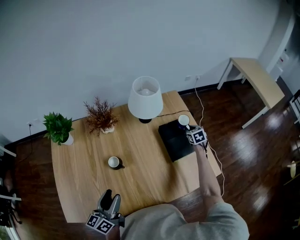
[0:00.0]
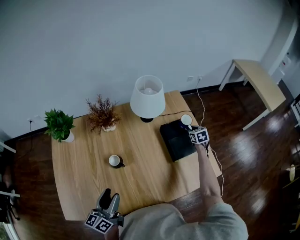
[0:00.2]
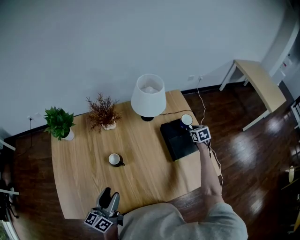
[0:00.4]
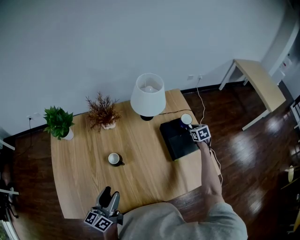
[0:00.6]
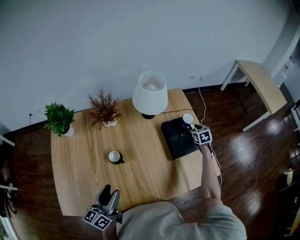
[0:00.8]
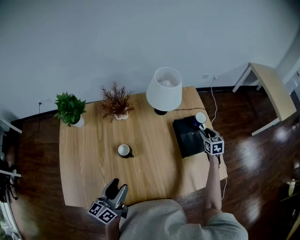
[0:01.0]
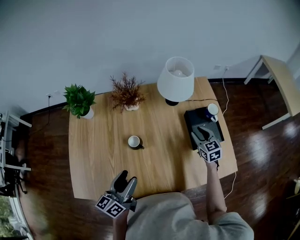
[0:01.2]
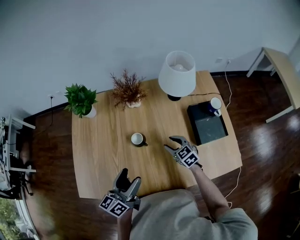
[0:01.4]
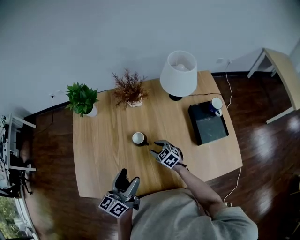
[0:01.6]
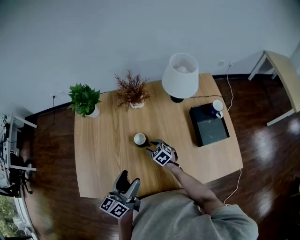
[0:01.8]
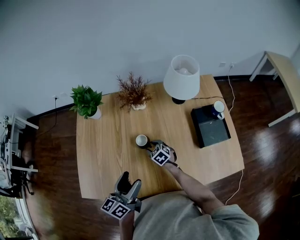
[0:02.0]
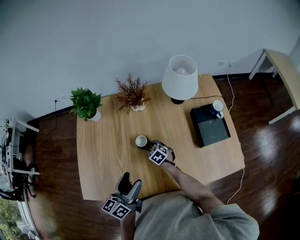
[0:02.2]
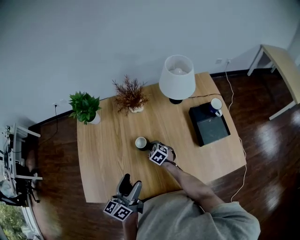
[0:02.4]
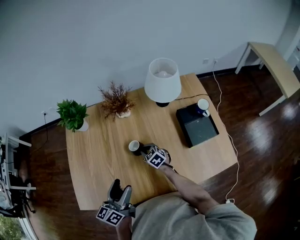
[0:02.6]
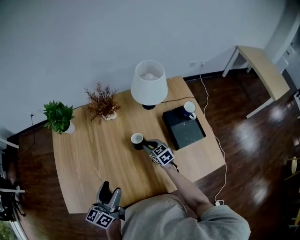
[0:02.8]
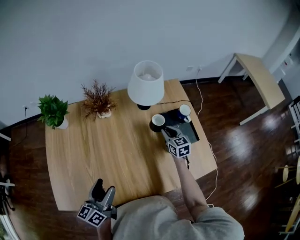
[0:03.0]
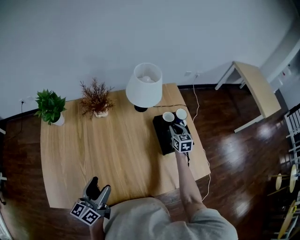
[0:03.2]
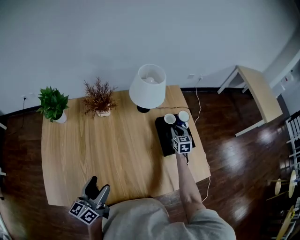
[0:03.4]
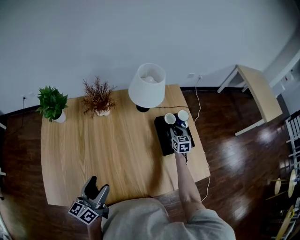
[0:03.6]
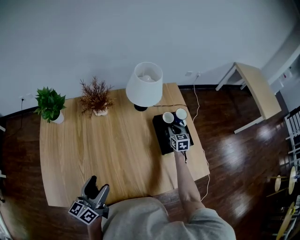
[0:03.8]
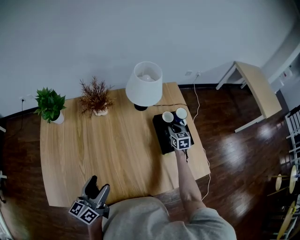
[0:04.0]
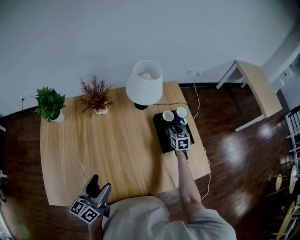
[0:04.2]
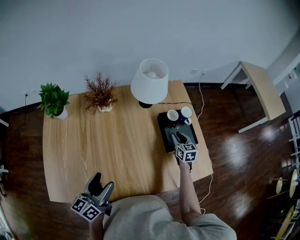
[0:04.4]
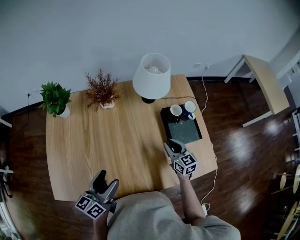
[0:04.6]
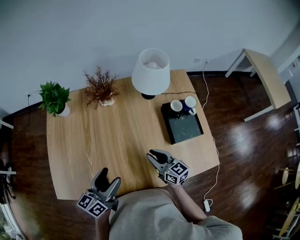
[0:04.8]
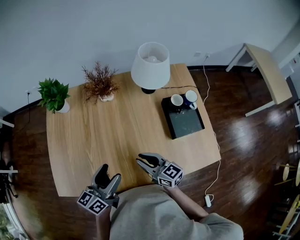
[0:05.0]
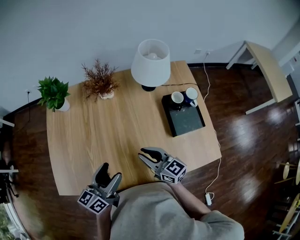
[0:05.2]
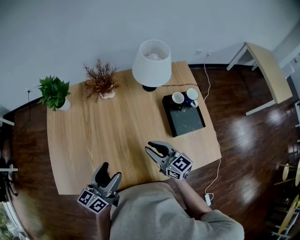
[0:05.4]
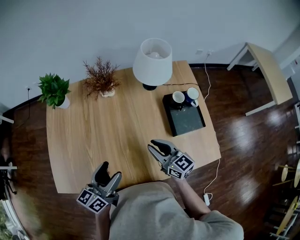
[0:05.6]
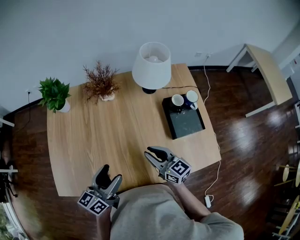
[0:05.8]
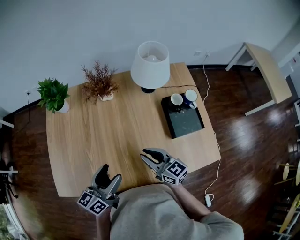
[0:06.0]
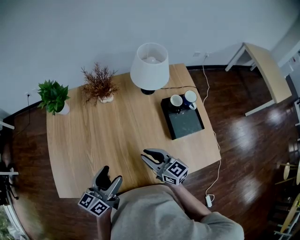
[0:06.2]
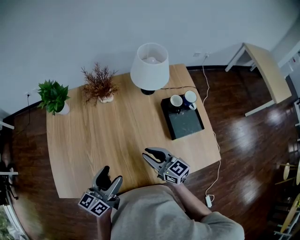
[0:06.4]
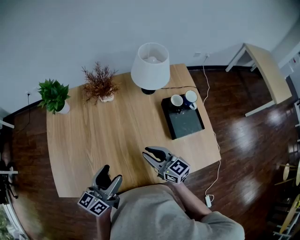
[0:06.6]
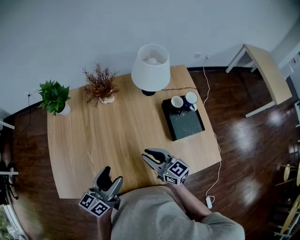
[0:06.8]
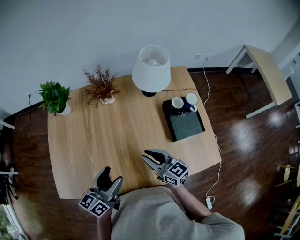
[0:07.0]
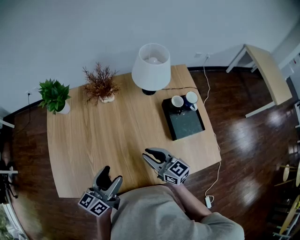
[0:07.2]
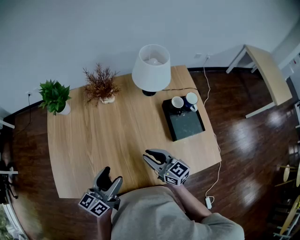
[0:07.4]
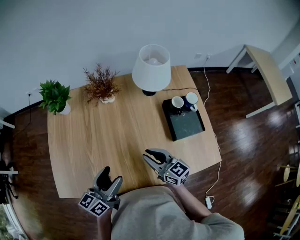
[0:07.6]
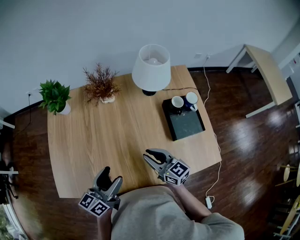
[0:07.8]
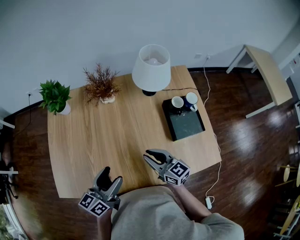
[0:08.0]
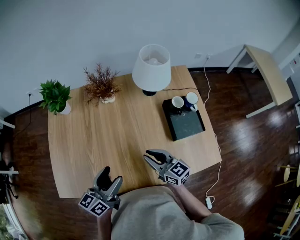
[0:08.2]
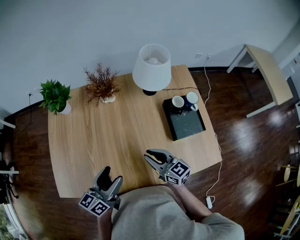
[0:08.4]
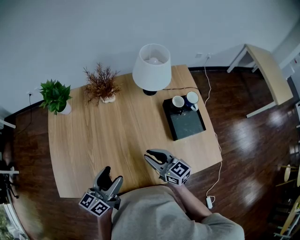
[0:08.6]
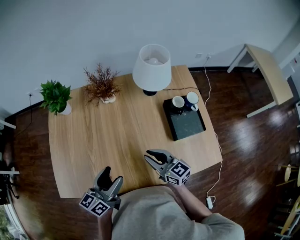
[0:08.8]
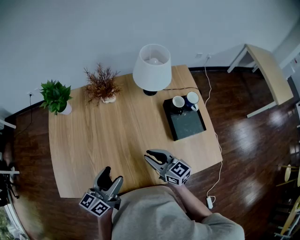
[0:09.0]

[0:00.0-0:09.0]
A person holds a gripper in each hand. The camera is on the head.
0:00.0 to 0:01.6: The right gripper moves approximately 50 cm, changes its angle by roughly 50 degrees, and opens.
0:01.6 to 0:03.0: The right gripper goes some 25 cm to the right, swivels roughly 40 degrees, and closes up.
0:03.0 to 0:04.4: The right gripper is displaced to the right by about 10 cm.
0:04.4 to 0:06.0: The right gripper heads to the left, backward and upward, covering about 30 cm, and rotates some 40 degrees.
0:06.0 to 0:07.6: The grippers move only a little.
0:07.6 to 0:09.0: Both grippers stay put.

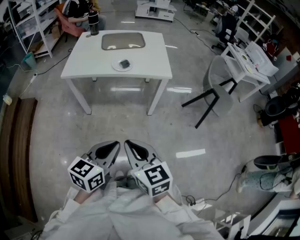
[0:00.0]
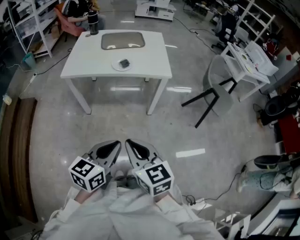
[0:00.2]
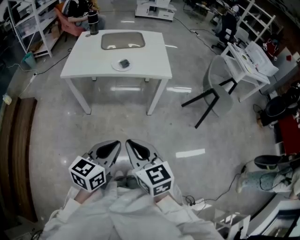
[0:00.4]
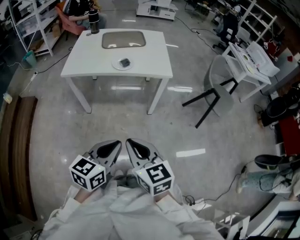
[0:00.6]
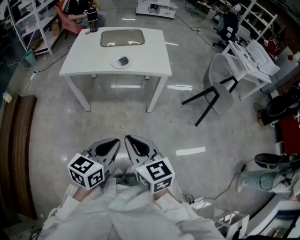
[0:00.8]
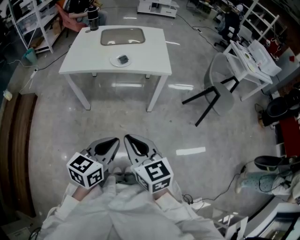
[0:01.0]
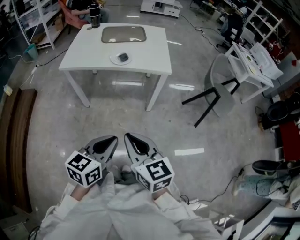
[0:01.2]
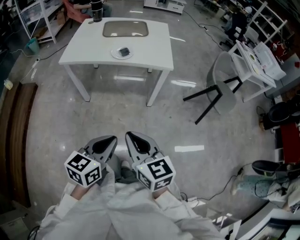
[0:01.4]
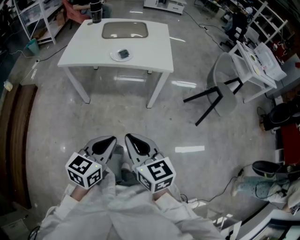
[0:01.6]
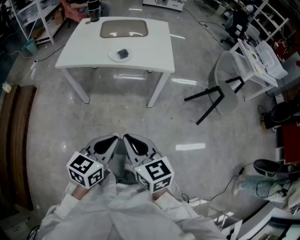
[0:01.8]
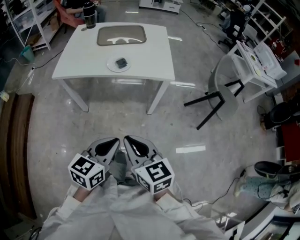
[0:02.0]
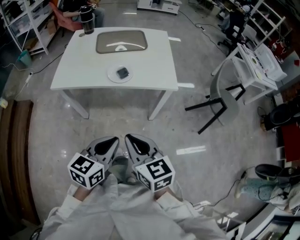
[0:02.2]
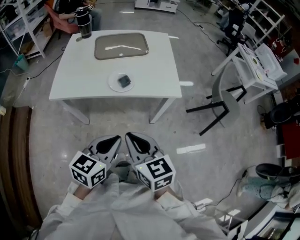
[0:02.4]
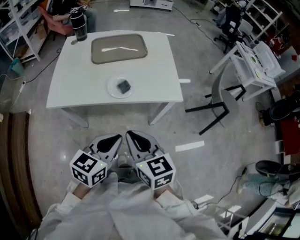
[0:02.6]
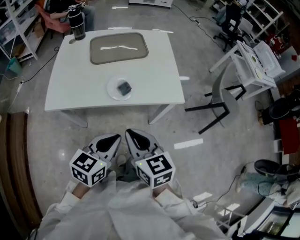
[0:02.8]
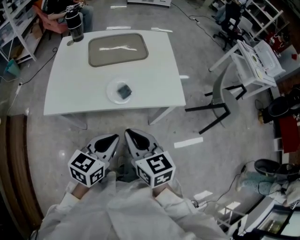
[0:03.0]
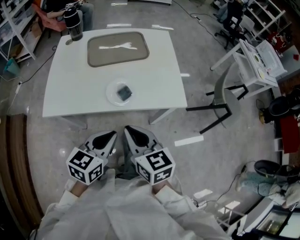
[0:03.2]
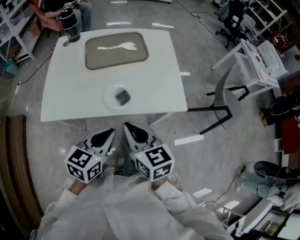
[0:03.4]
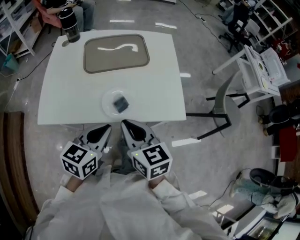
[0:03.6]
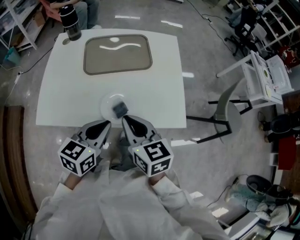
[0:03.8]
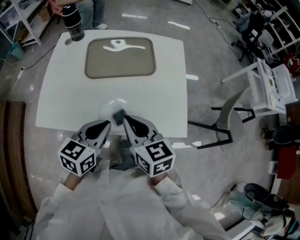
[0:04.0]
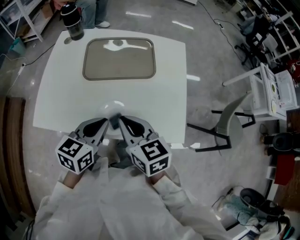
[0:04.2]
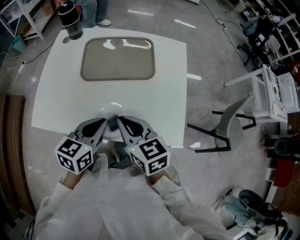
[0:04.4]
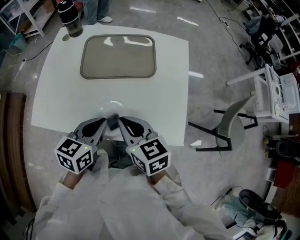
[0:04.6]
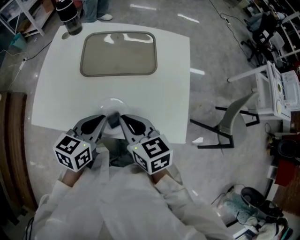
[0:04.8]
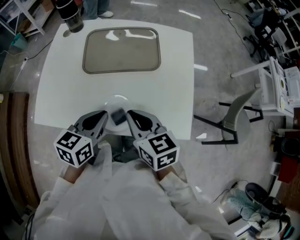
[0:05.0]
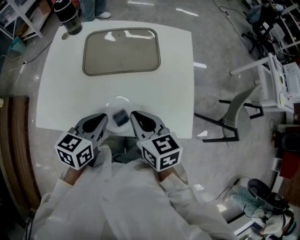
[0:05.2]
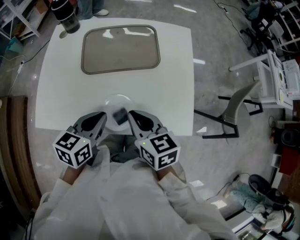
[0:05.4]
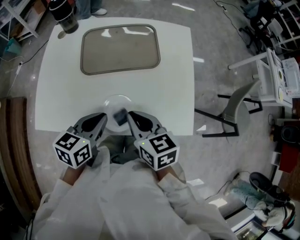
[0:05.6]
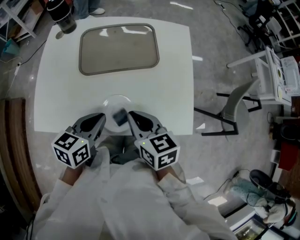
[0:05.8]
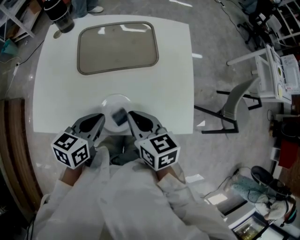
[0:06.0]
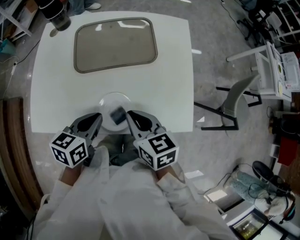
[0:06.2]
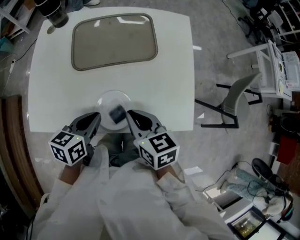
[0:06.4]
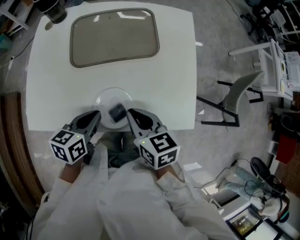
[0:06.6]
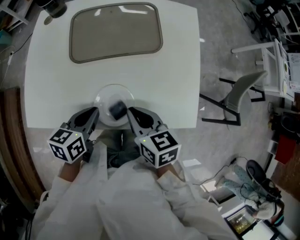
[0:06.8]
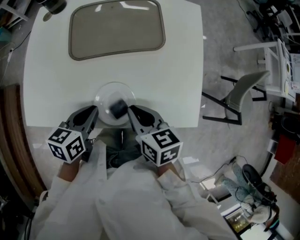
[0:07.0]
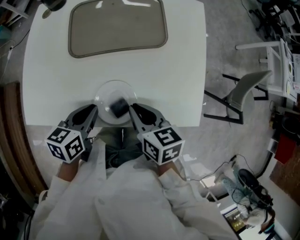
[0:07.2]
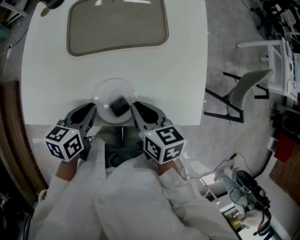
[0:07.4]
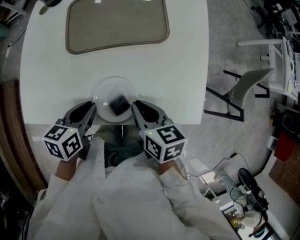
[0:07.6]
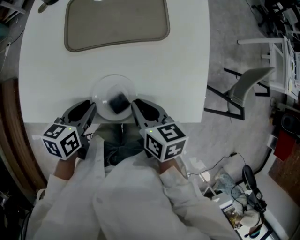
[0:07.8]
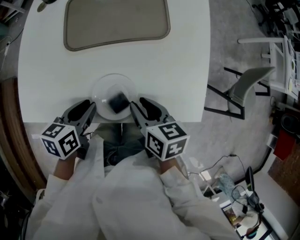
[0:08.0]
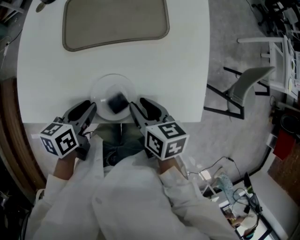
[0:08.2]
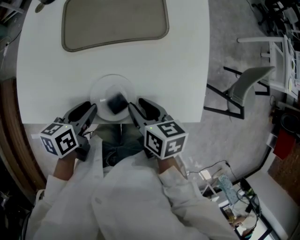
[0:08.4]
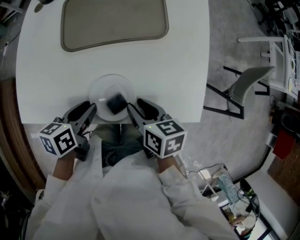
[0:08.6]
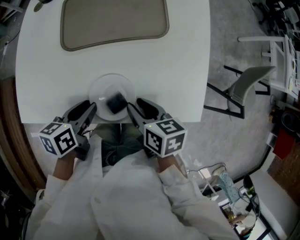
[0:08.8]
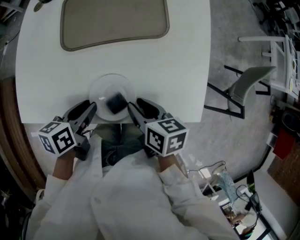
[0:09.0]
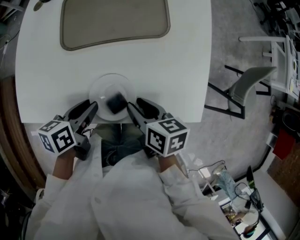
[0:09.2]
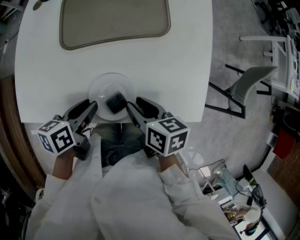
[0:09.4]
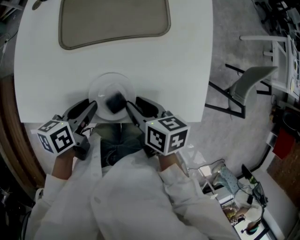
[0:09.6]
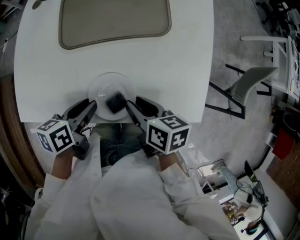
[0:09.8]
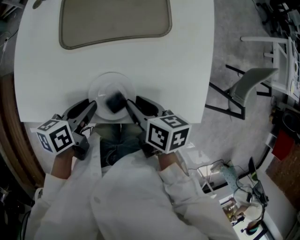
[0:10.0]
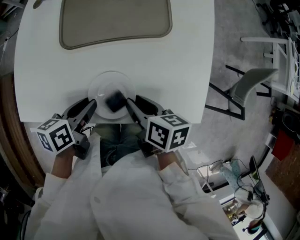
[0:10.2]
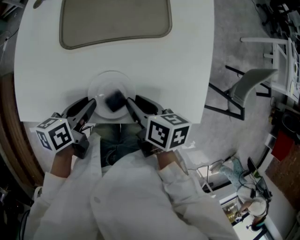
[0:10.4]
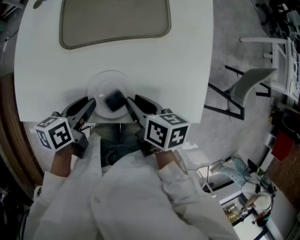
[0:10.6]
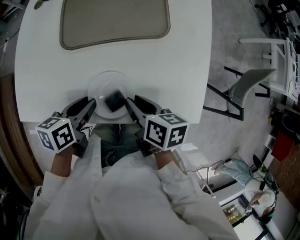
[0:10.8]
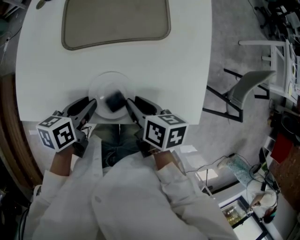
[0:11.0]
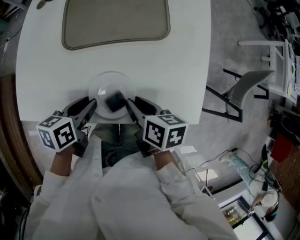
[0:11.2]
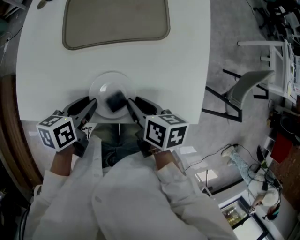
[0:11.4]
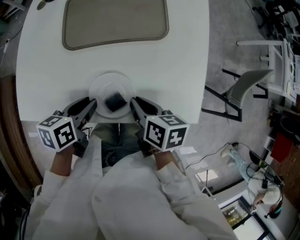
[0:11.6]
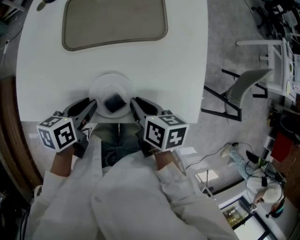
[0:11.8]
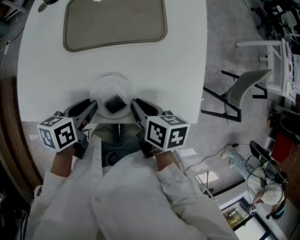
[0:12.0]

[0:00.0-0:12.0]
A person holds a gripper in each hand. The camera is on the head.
0:00.0 to 0:01.6: The right gripper goes roughly 5 cm to the right; the left gripper changes place by roughly 5 cm.
0:01.6 to 0:03.0: Both grippers travel together forward, approximately 35 cm.
0:03.0 to 0:04.4: The grippers both shift forward by some 25 cm.
0:04.4 to 0:06.0: The grippers stay close to where they were, moving slightly.
0:06.0 to 0:07.6: Both grippers travel together downward, about 10 cm.
0:07.6 to 0:09.0: The right gripper opens up.
0:09.0 to 0:12.0: There are only small adjustments of the grippers.

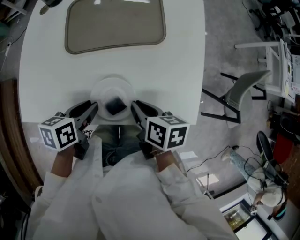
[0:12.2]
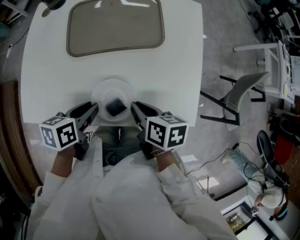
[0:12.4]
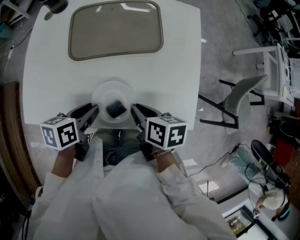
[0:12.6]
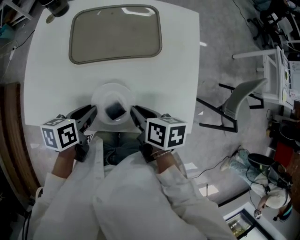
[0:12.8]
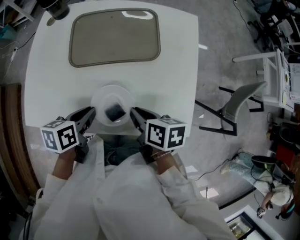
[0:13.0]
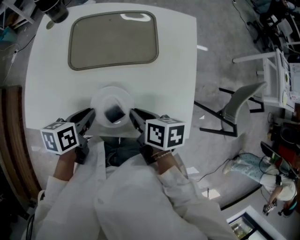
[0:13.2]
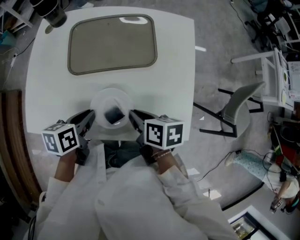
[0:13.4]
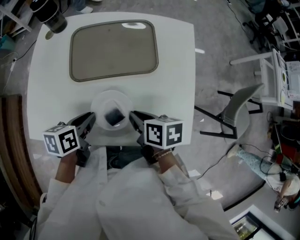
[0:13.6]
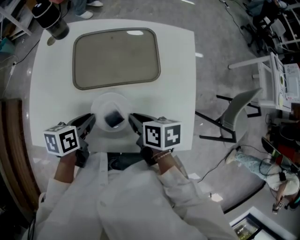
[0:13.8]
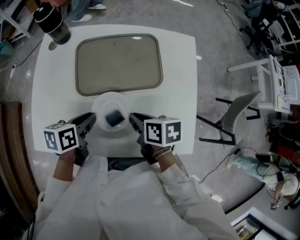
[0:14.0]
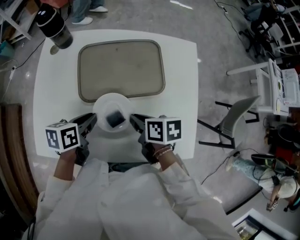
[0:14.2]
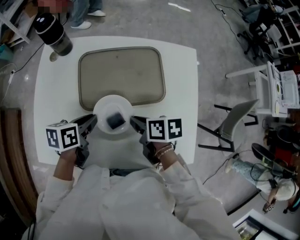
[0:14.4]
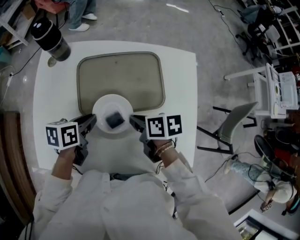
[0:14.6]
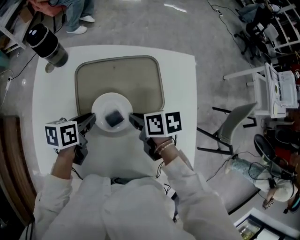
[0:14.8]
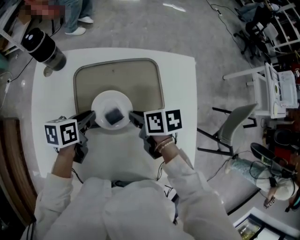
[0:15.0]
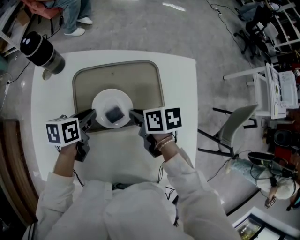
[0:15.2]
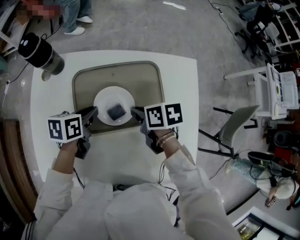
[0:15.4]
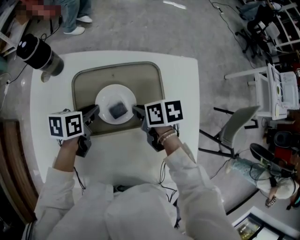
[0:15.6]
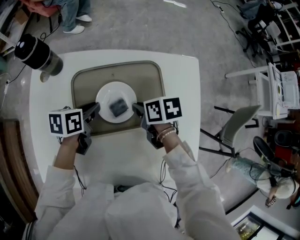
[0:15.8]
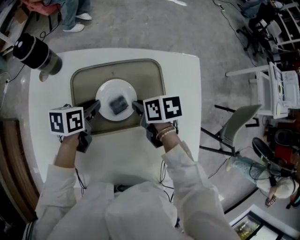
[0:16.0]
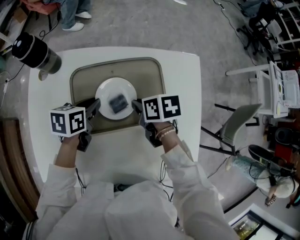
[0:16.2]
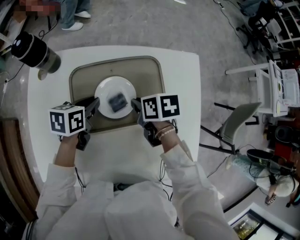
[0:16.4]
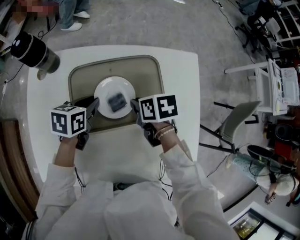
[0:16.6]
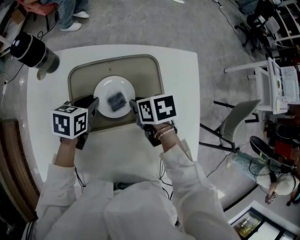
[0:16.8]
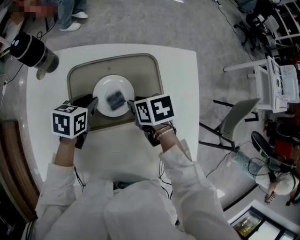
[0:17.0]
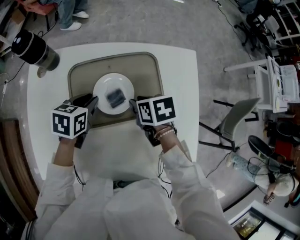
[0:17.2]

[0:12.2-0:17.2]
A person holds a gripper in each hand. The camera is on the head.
0:12.2 to 0:13.8: Both grippers move forward, some 10 cm.
0:13.8 to 0:15.6: Both grippers move forward, roughly 20 cm.
0:15.6 to 0:17.2: The left gripper turns by some 20 degrees.
